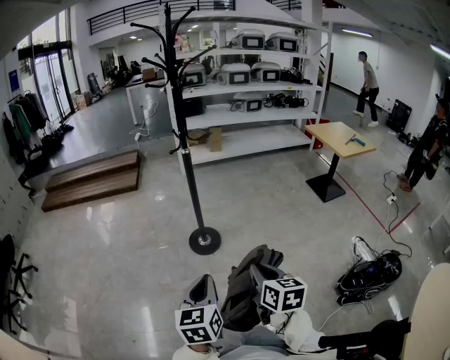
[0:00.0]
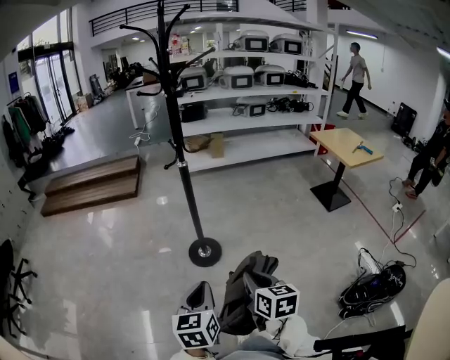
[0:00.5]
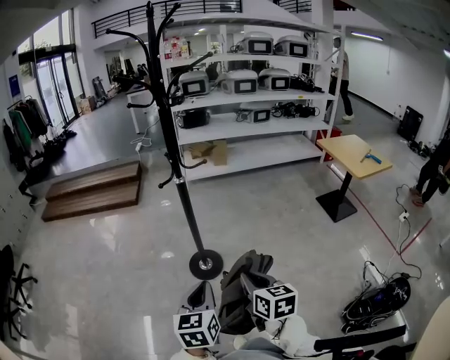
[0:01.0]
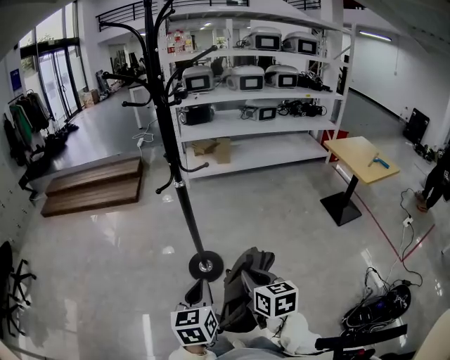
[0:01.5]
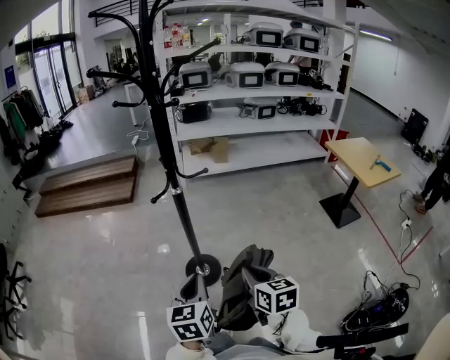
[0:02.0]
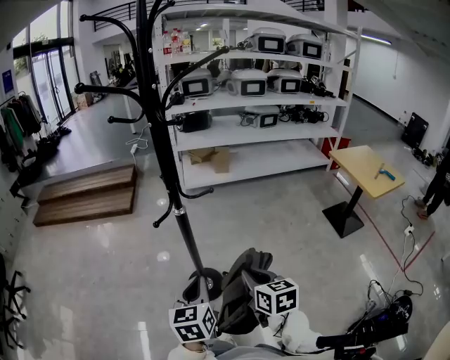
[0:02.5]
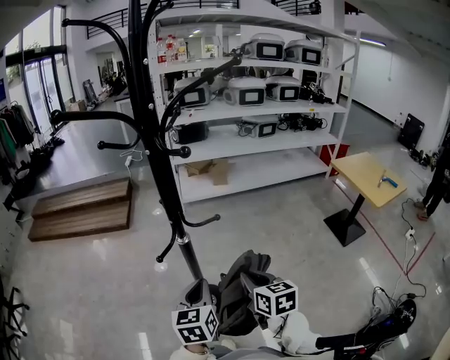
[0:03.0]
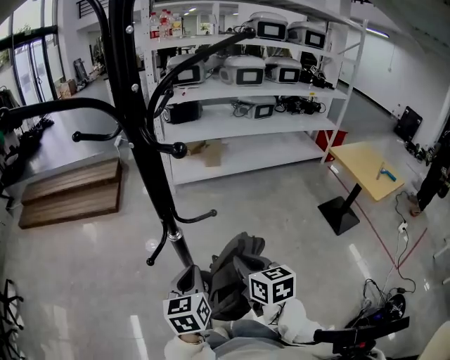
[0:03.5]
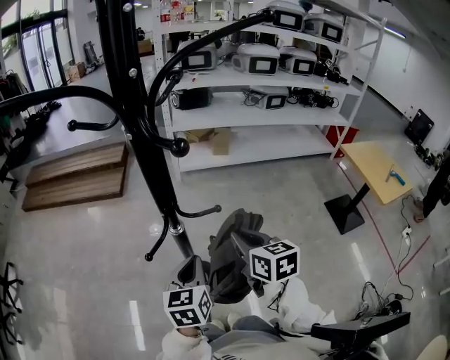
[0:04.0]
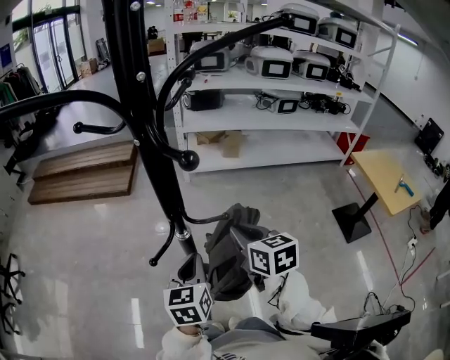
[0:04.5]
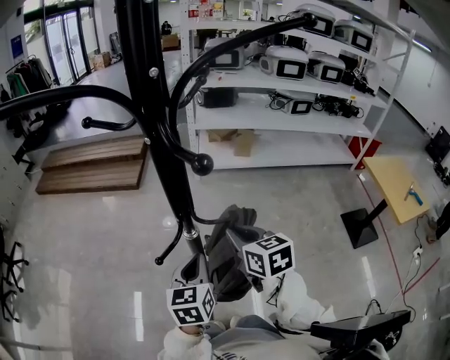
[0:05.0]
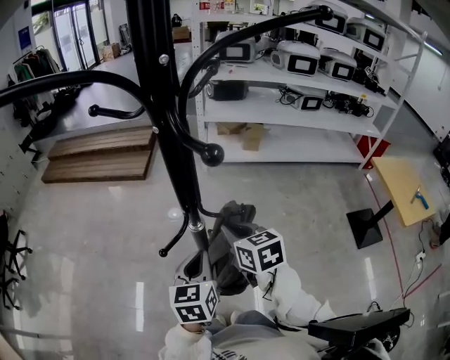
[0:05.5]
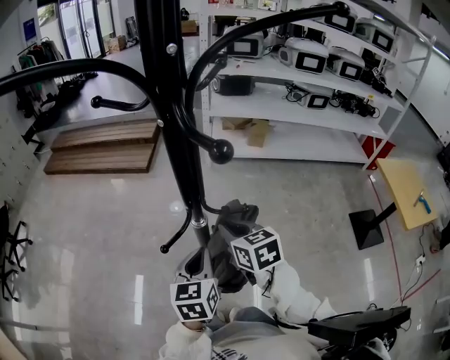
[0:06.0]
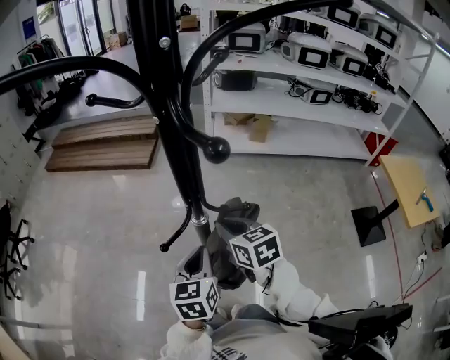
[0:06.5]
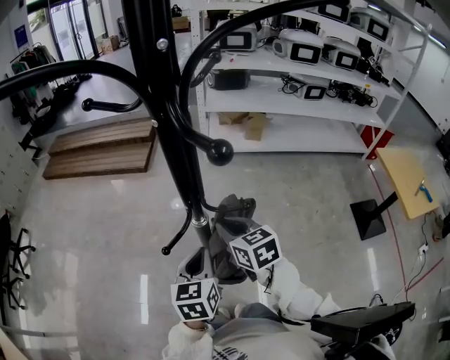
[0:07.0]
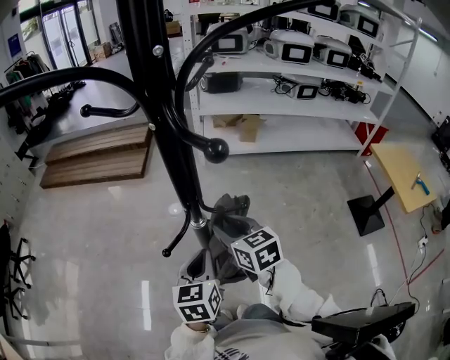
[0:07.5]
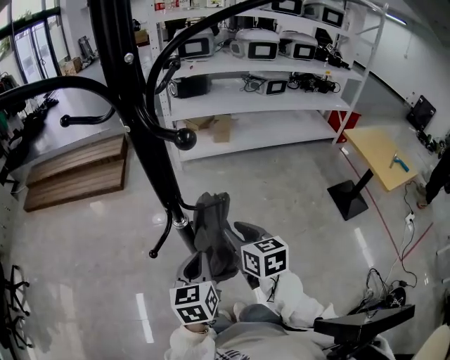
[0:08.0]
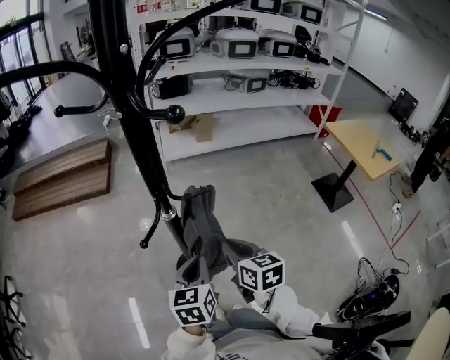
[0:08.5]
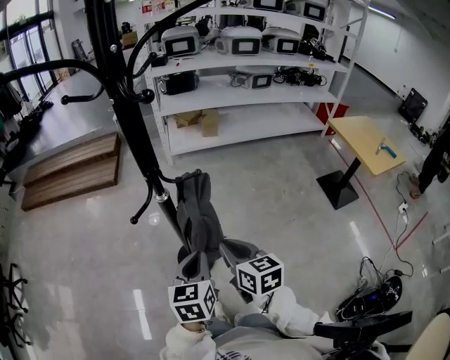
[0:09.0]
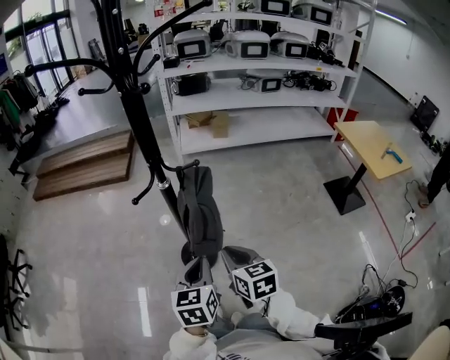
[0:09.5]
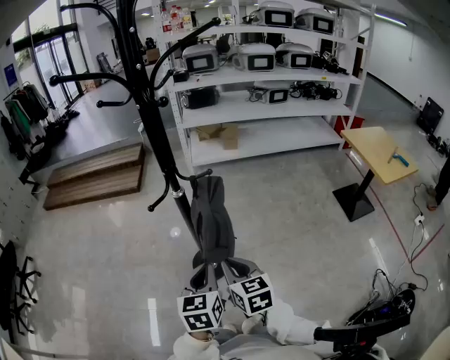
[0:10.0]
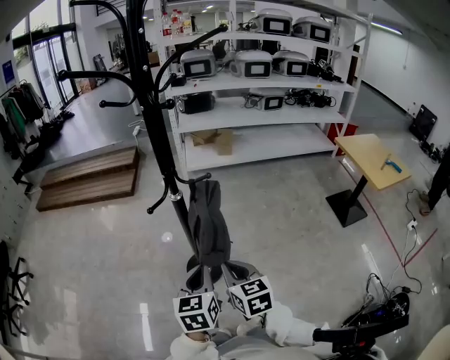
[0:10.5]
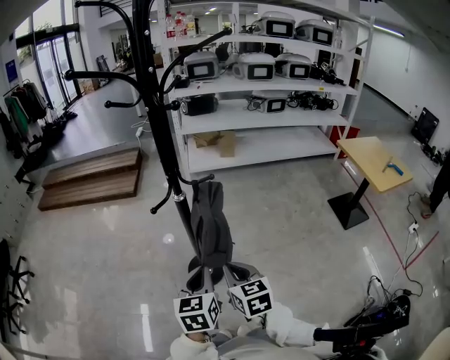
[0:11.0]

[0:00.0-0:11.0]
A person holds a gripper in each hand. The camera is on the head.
0:00.0 to 0:02.0: The two grippers go approximately 30 cm forward.
0:02.0 to 0:03.5: The two grippers go some 25 cm forward.
0:03.5 to 0:05.5: The right gripper moves forward and to the left, approximately 15 cm, and turns by roughly 20 degrees.
0:05.5 to 0:07.5: The right gripper opens up.
0:07.5 to 0:09.0: The left gripper shifts roughly 15 cm backward and to the right. The right gripper goes some 20 cm backward and to the right, and closes.
0:09.0 to 0:11.0: Both grippers move backward, approximately 10 cm.

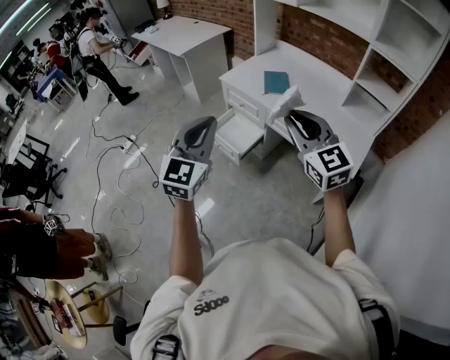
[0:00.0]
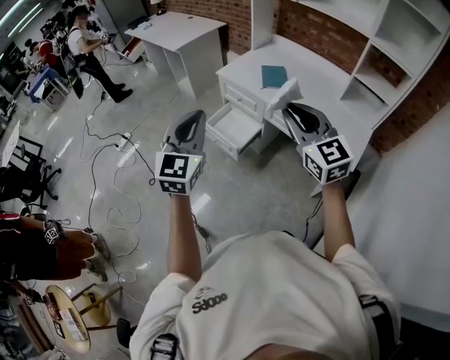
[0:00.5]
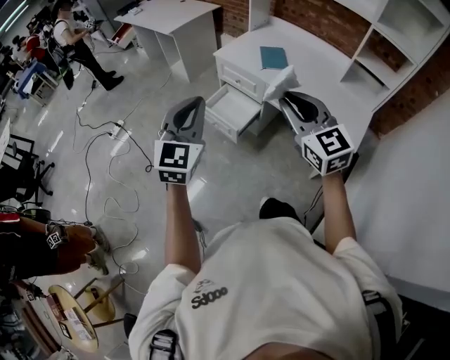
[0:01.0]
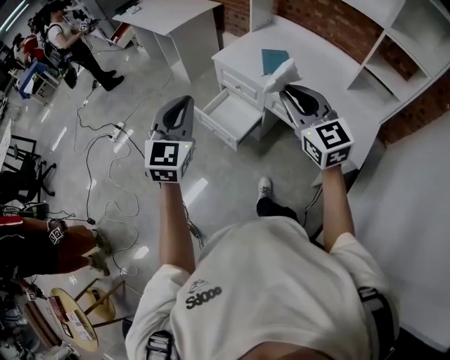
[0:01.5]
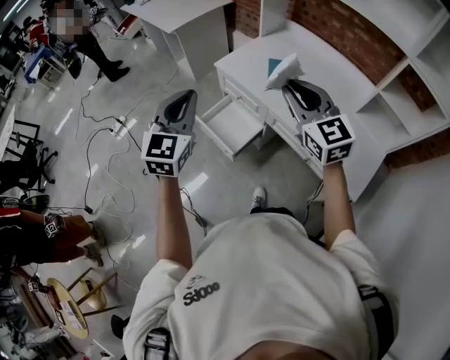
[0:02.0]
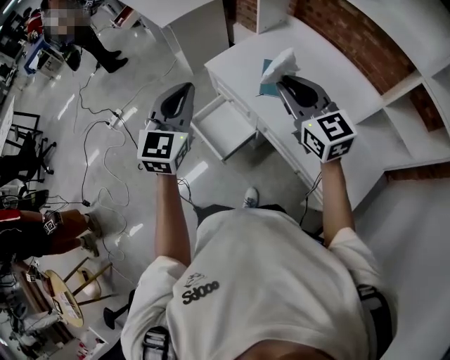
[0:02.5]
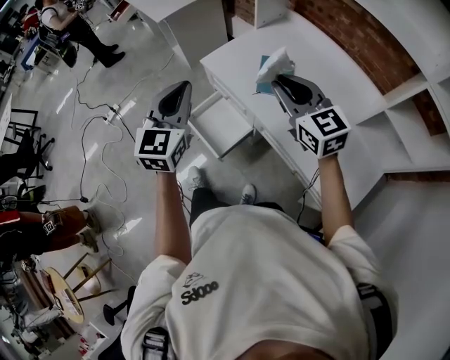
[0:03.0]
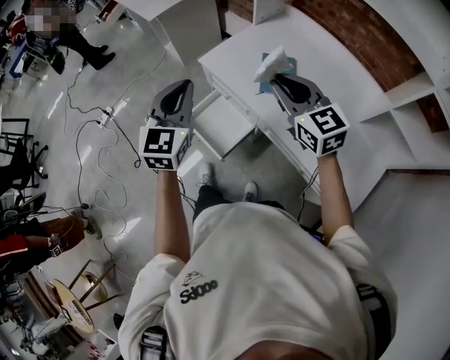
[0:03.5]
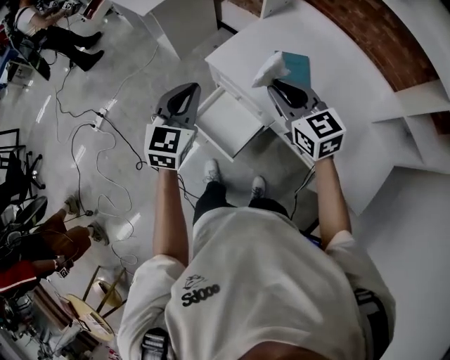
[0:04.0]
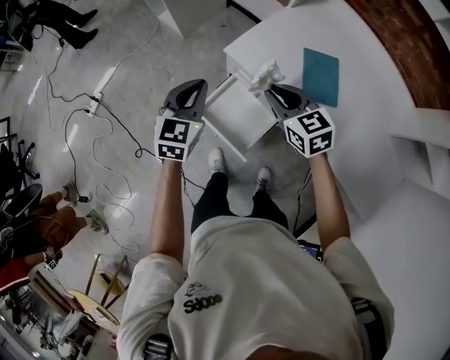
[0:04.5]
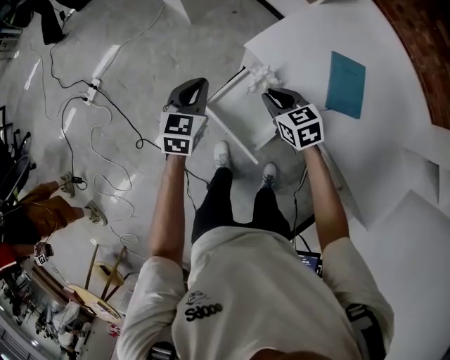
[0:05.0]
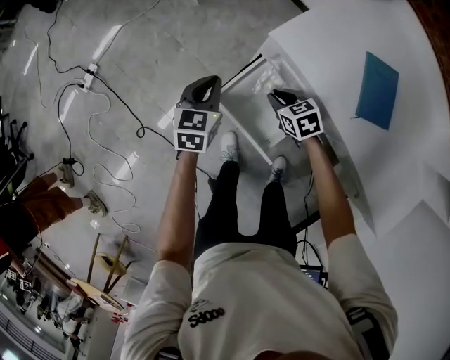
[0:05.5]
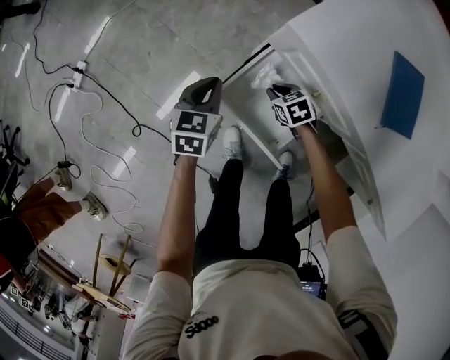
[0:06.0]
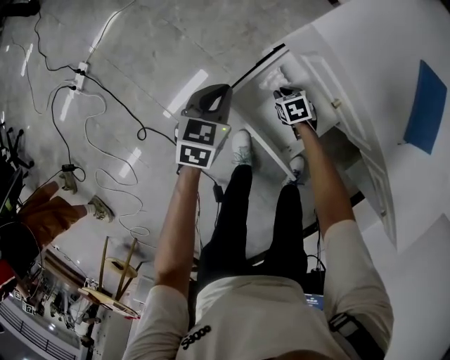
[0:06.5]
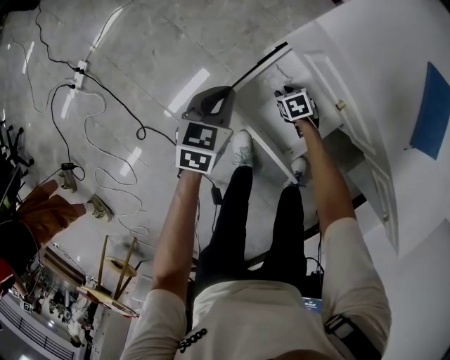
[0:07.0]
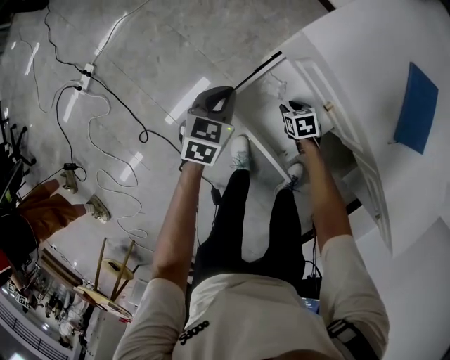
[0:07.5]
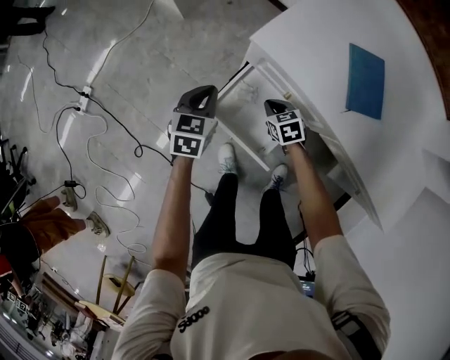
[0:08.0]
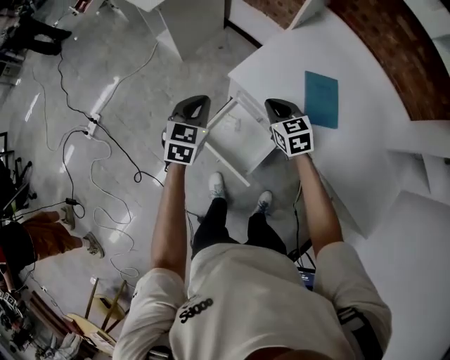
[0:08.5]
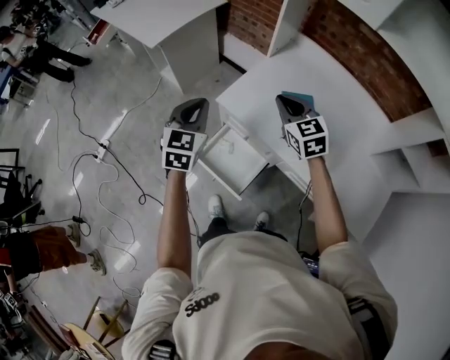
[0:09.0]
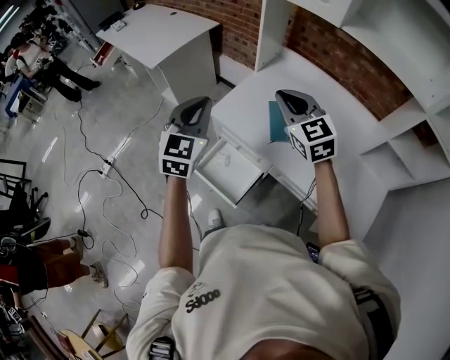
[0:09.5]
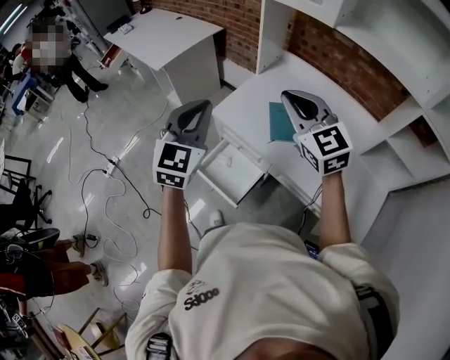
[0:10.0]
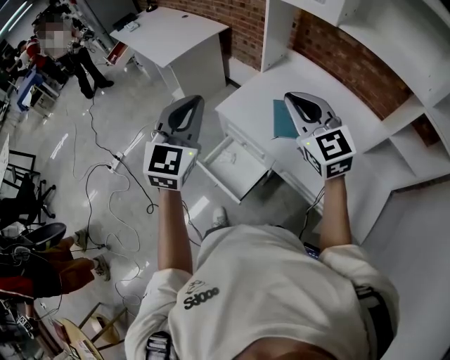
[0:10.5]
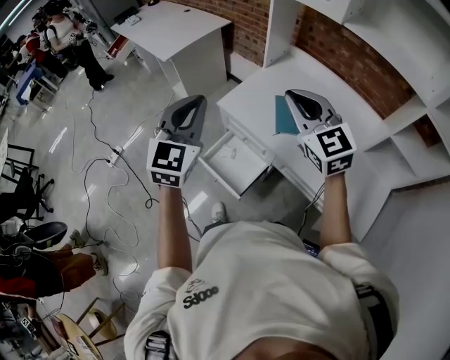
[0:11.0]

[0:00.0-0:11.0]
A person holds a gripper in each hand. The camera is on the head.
0:00.0 to 0:02.0: The two grippers go some 25 cm forward.
0:02.0 to 0:03.5: The right gripper moves forward and downward, about 15 cm, while the left gripper travels forward and to the right by roughly 15 cm.
0:03.5 to 0:05.5: The right gripper heads downward, forward and to the left, covering about 60 cm, and points its fingers roughly 40 degrees further downward. The left gripper heads downward and forward, covering roughly 50 cm, and turns by approximately 30 degrees.
0:05.5 to 0:07.5: The left gripper goes approximately 10 cm downward. Meanwhile the right gripper travels downward by about 25 cm.
0:07.5 to 0:09.0: The two grippers go some 60 cm upward. The left gripper changes its angle by some 30 degrees. The right gripper tilts its fingers some 40 degrees upward, and closes.
0:09.0 to 0:11.0: Both grippers move upward and backward, approximately 20 cm.

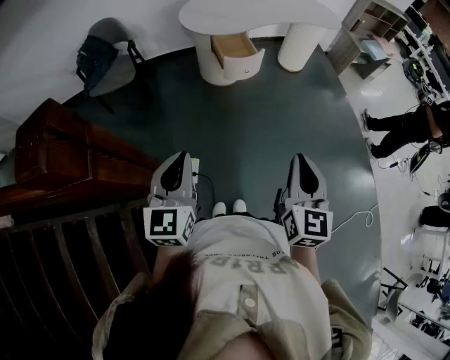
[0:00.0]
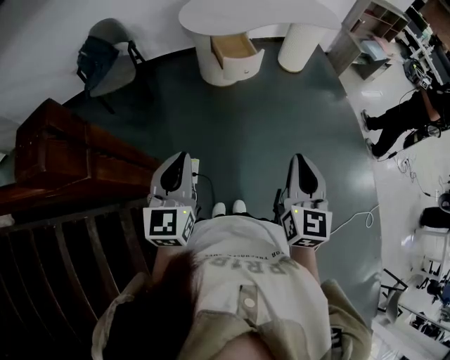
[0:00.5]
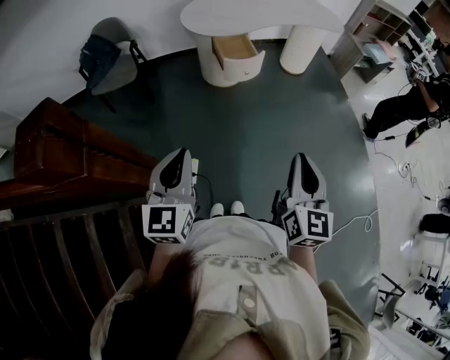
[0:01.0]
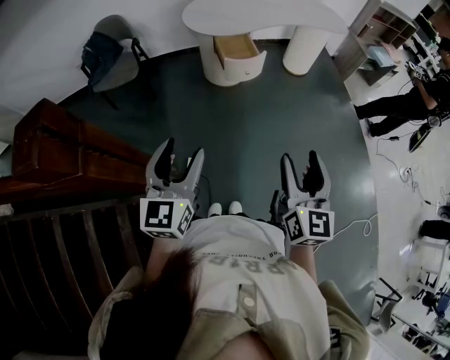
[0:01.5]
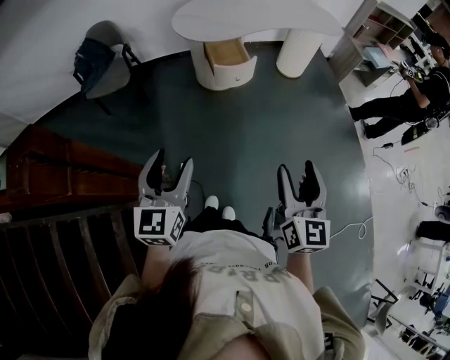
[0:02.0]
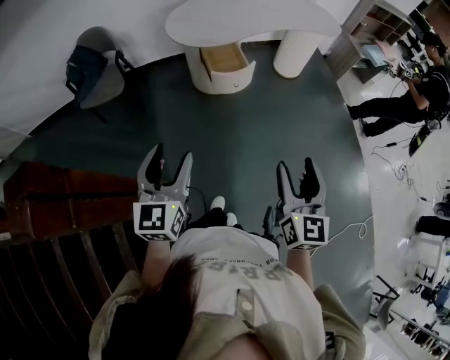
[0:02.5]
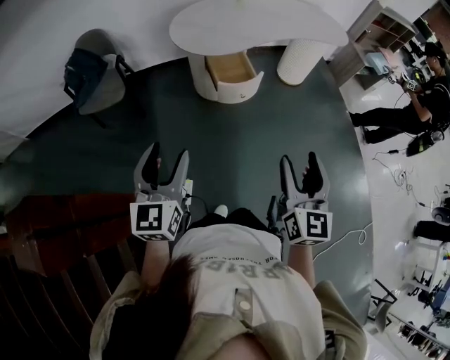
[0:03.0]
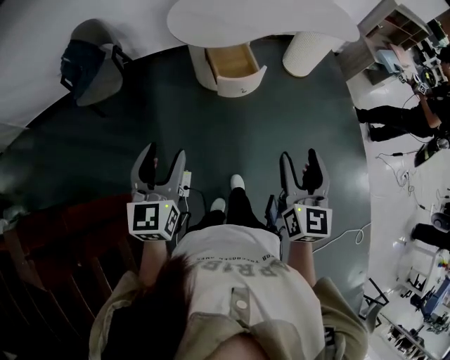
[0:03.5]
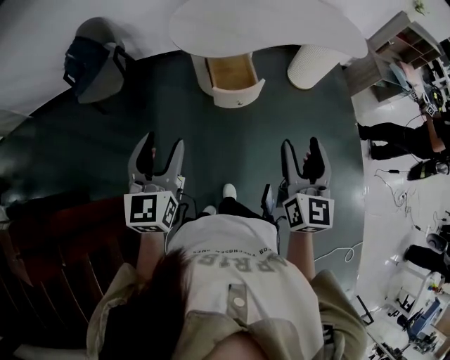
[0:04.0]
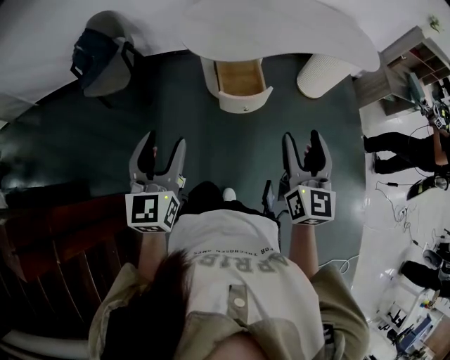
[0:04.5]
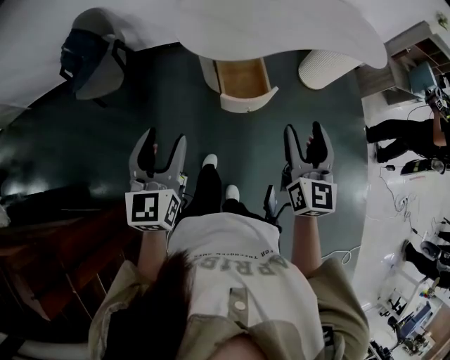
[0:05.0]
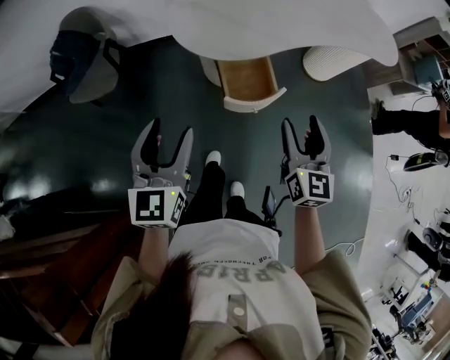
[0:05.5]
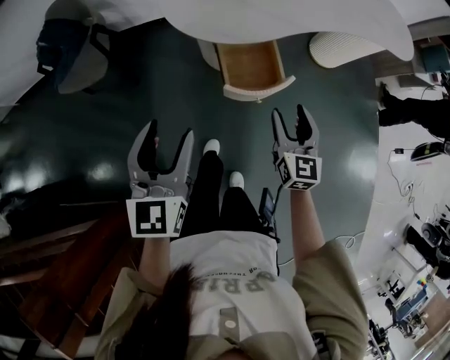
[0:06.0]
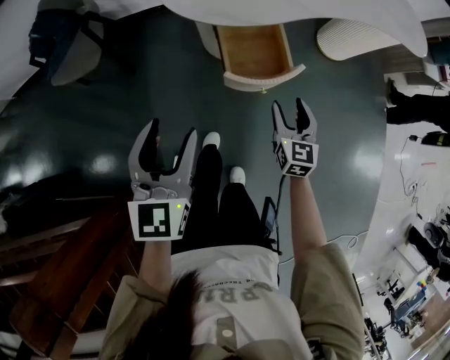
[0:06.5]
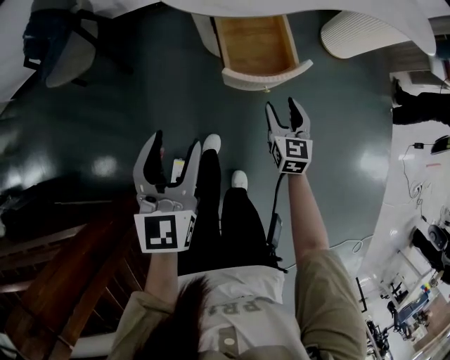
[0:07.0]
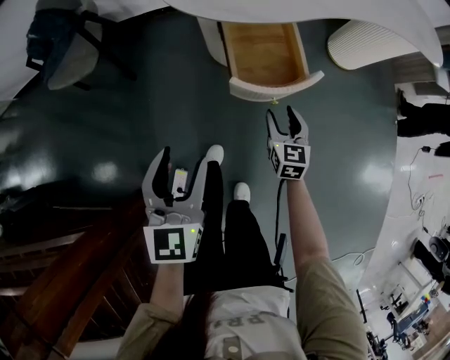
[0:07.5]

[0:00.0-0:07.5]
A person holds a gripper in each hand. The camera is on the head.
0:00.0 to 0:02.0: The left gripper moves to the right and forward, roughly 10 cm, and opens up. Meanwhile the right gripper is displaced to the right by roughly 5 cm, and opens.
0:02.0 to 0:04.0: The grippers both shift forward by roughly 30 cm.
0:04.0 to 0:05.5: The left gripper travels forward by about 15 cm, while the right gripper shifts some 25 cm forward and downward.
0:05.5 to 0:07.5: The left gripper is displaced downward by approximately 20 cm. The right gripper heads downward, covering roughly 35 cm.
